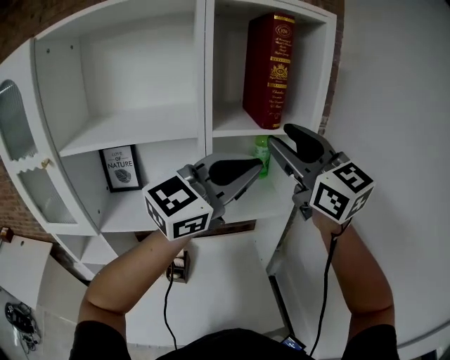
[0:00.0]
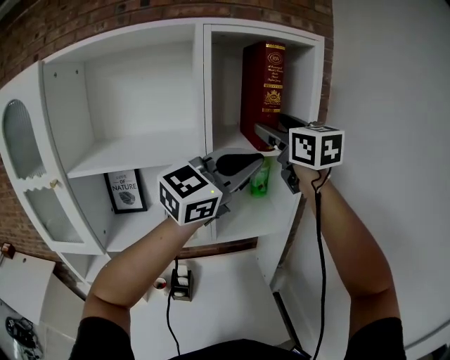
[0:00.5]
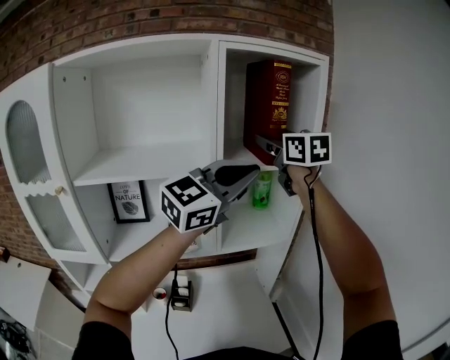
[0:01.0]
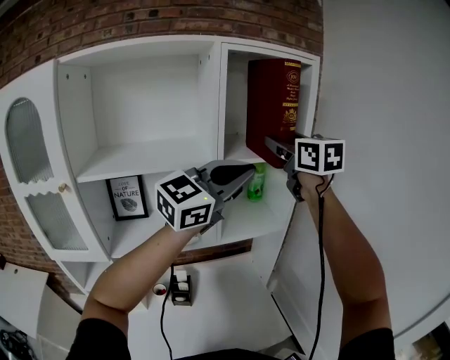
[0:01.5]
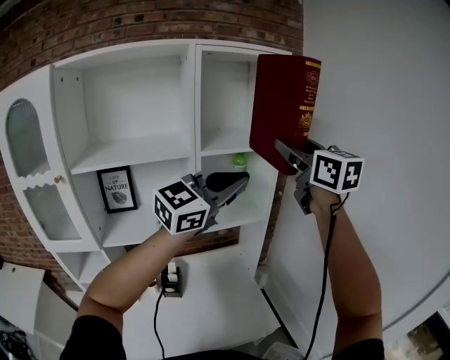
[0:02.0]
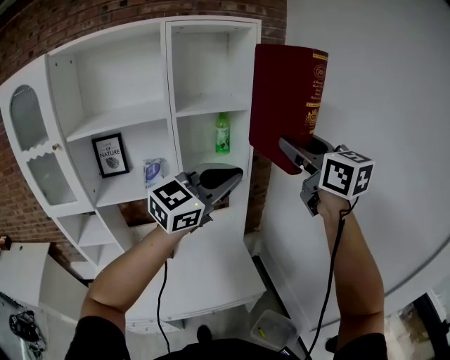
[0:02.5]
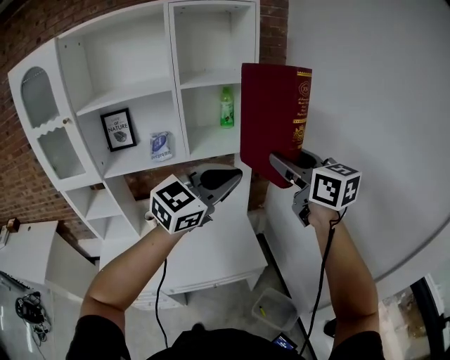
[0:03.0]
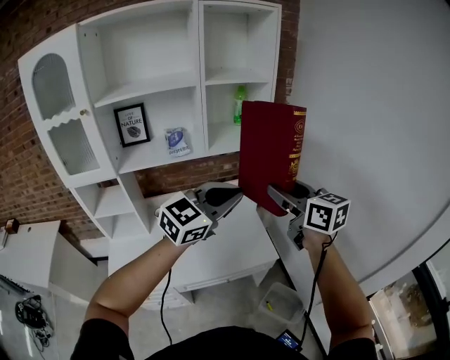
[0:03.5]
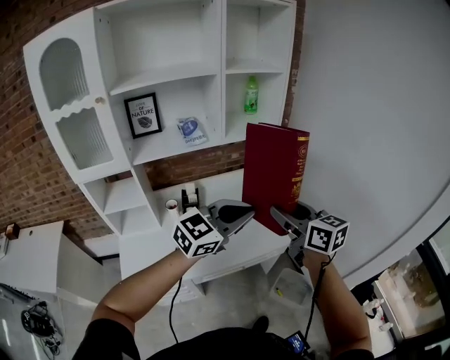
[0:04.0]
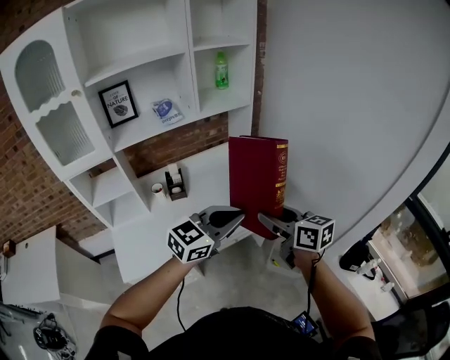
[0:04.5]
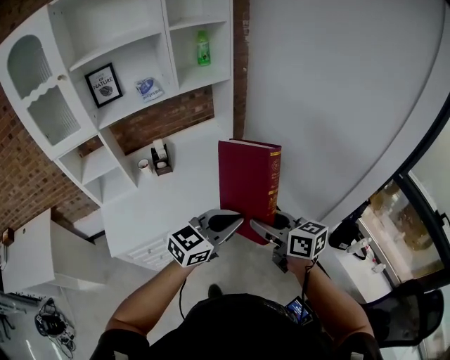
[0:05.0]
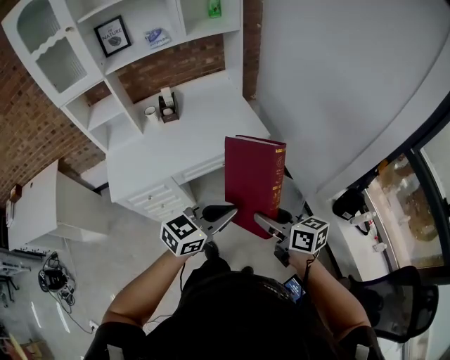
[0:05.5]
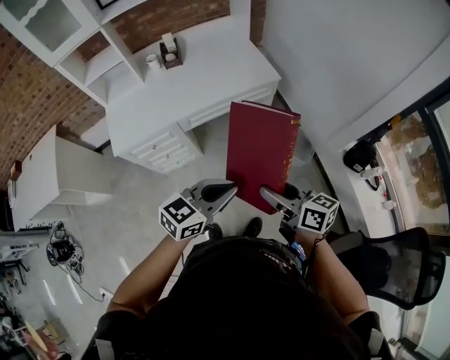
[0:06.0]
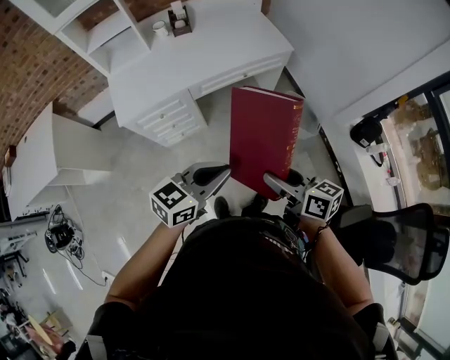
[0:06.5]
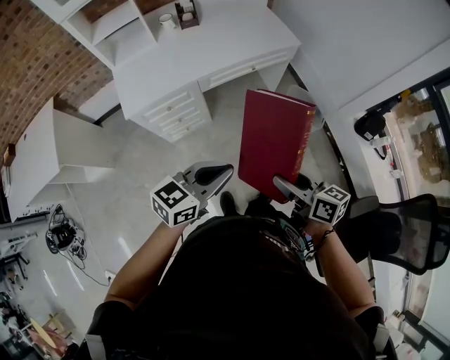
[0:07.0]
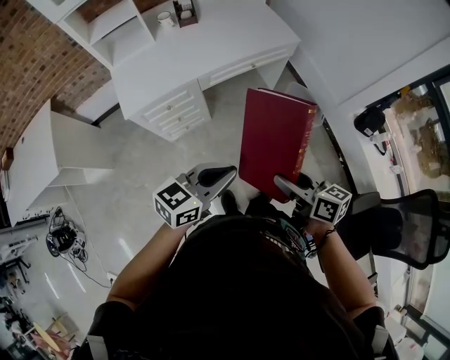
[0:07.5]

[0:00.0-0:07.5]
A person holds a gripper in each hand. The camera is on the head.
0:00.0 to 0:02.0: The right gripper moves to the right, some 10 cm, reaches roughly 15 cm forward, then returns, and rotates approximately 20 degrees; the left gripper heads backward, covering approximately 5 cm.
0:02.0 to 0:04.0: The left gripper goes roughly 35 cm backward and downward. The right gripper travels downward and backward by about 40 cm, and changes its angle by roughly 30 degrees.
0:04.0 to 0:05.5: The grippers both shift backward, downward and to the right by approximately 40 cm. The left gripper turns by roughly 20 degrees. The right gripper swivels some 20 degrees.
0:05.5 to 0:07.5: The left gripper travels to the left, backward and downward by about 30 cm. The right gripper is displaced backward, to the left and downward by about 25 cm.

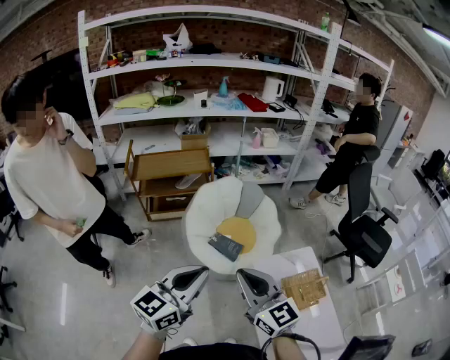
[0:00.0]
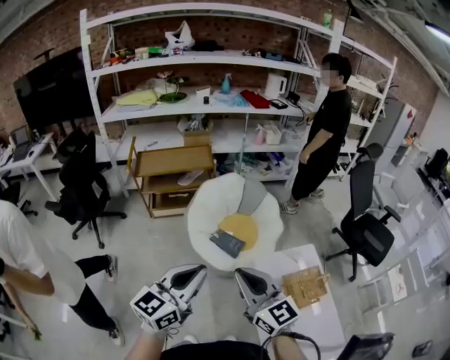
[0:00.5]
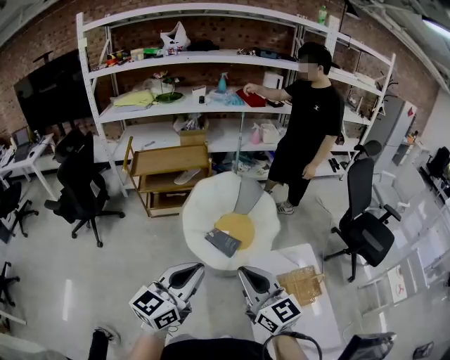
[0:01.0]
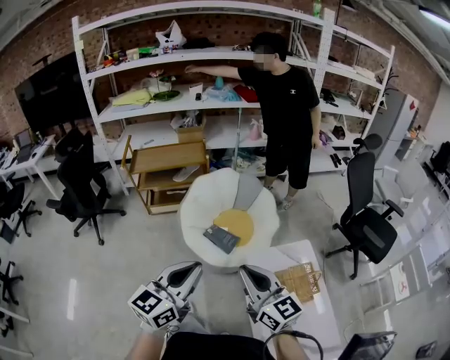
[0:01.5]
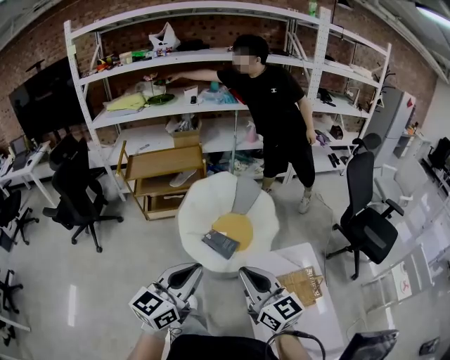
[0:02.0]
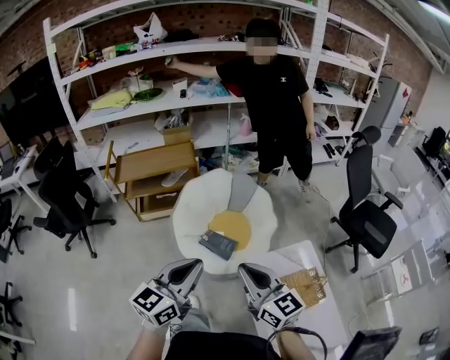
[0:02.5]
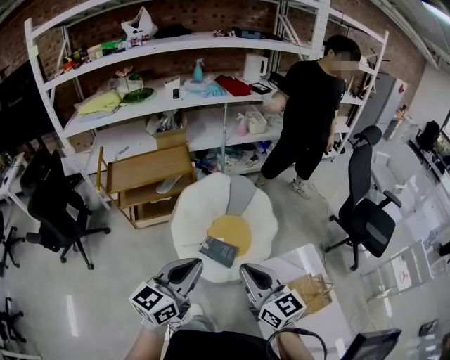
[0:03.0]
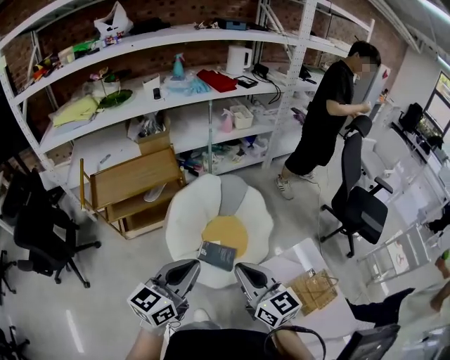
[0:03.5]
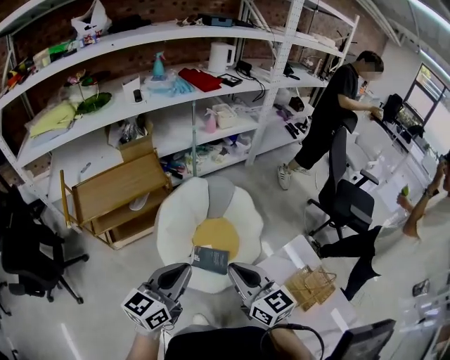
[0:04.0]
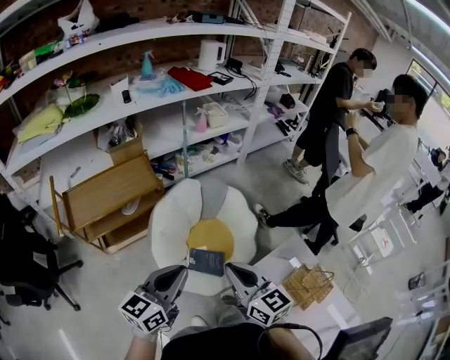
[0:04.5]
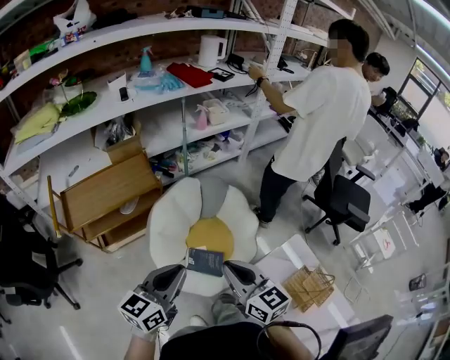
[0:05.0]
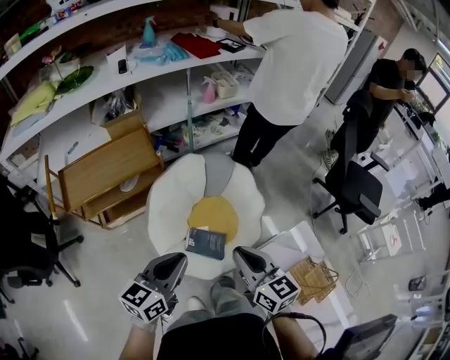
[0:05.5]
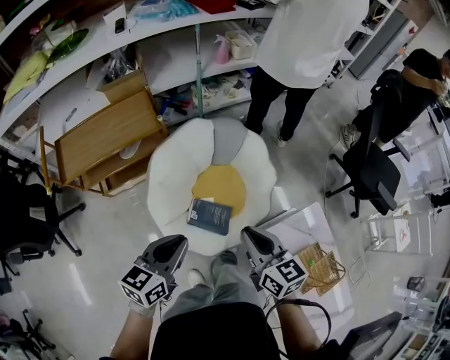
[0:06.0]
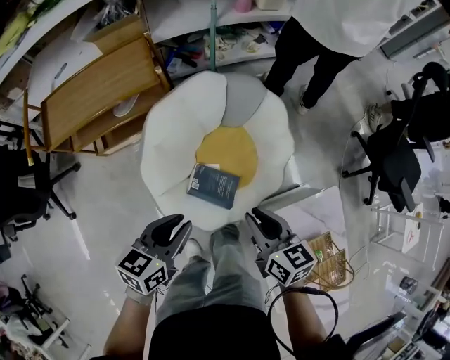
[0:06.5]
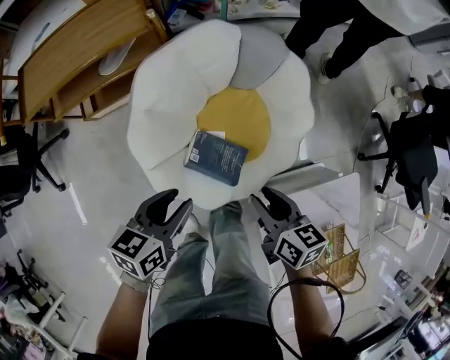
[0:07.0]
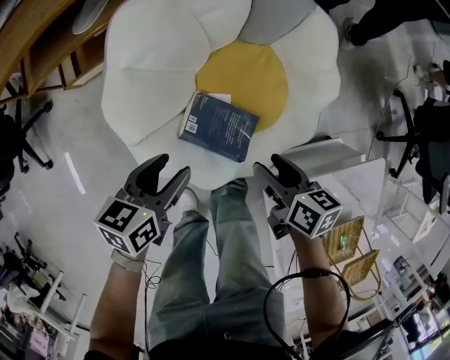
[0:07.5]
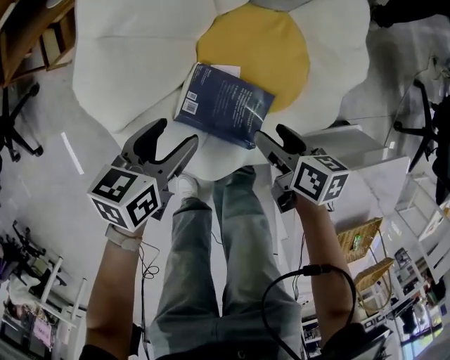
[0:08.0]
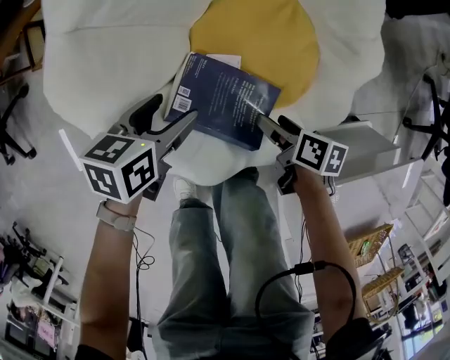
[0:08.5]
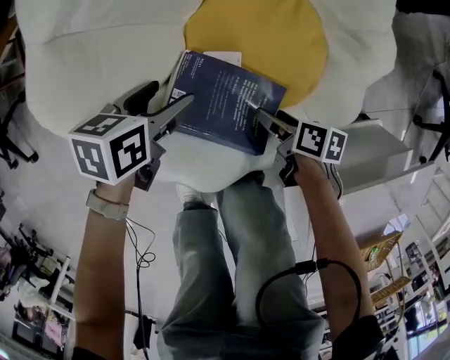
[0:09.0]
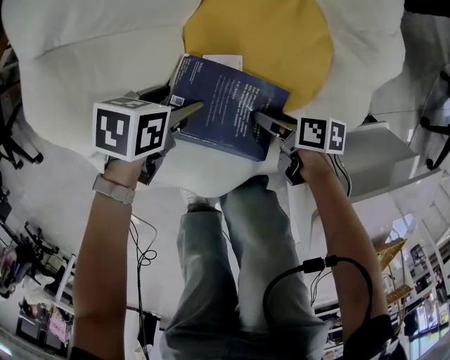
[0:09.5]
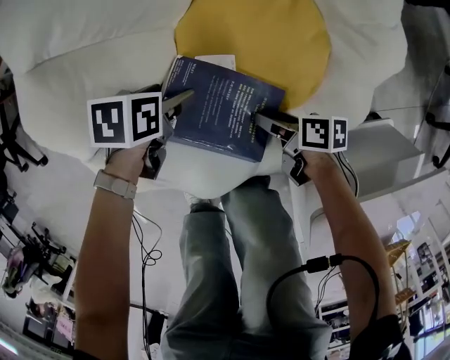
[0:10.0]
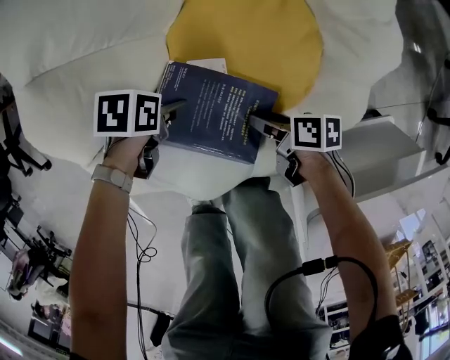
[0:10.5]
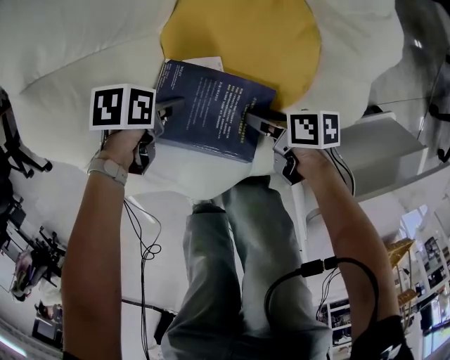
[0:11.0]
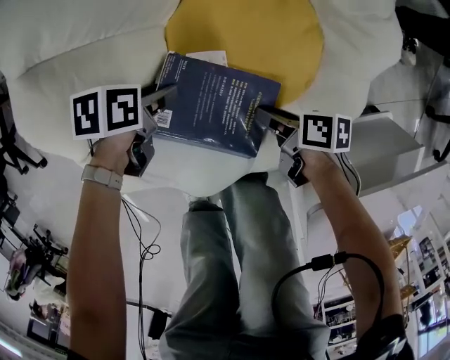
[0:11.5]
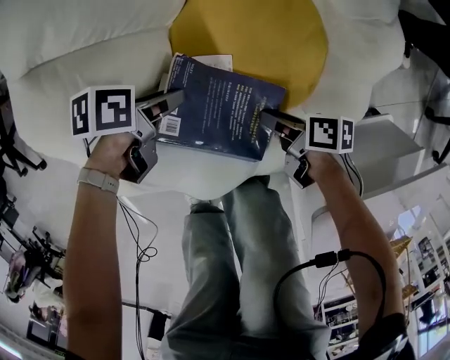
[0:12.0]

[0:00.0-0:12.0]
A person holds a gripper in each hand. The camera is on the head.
0:00.0 to 0:02.0: The grippers both shift to the right by roughly 10 cm.
0:02.0 to 0:04.0: Both grippers move forward and to the left, about 35 cm. The left gripper swivels approximately 20 degrees.
0:04.0 to 0:06.0: The right gripper travels forward, downward and to the right by about 20 cm. Meanwhile the left gripper heads downward and forward, covering about 20 cm, and changes its angle by roughly 20 degrees.
0:06.0 to 0:08.0: The grippers both shift downward by about 50 cm. The left gripper changes its angle by about 30 degrees, and opens. Meanwhile the right gripper turns by about 40 degrees, and opens its fingers.
0:08.0 to 0:10.0: Both grippers move downward, roughly 20 cm. The right gripper turns by about 20 degrees; the left gripper rotates some 30 degrees.
0:10.0 to 0:12.0: The left gripper changes its angle by about 20 degrees, and closes.

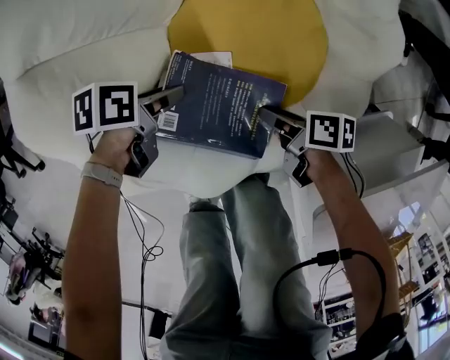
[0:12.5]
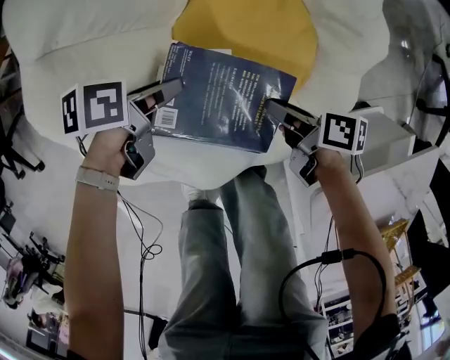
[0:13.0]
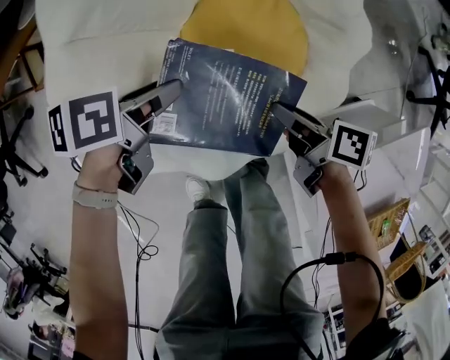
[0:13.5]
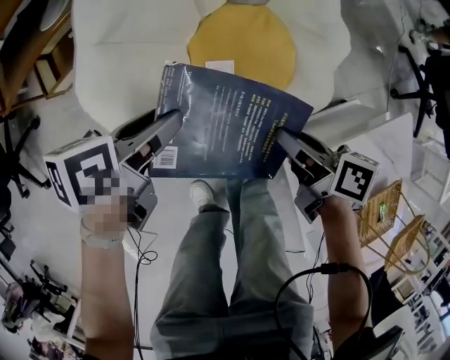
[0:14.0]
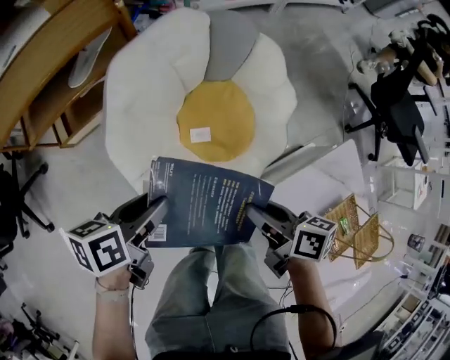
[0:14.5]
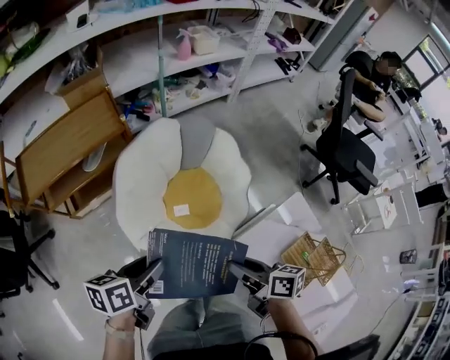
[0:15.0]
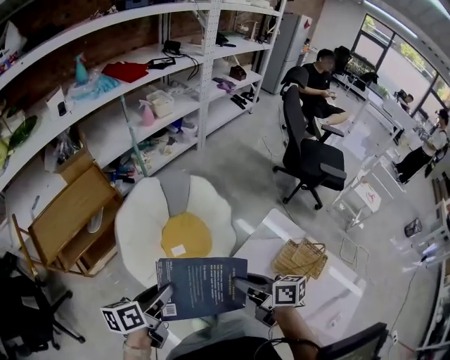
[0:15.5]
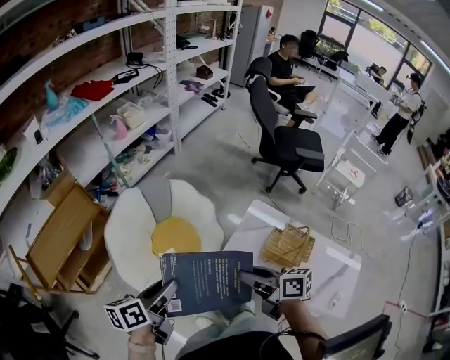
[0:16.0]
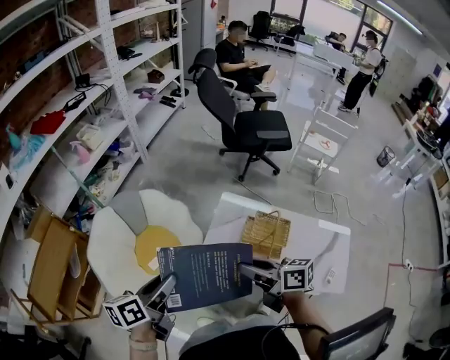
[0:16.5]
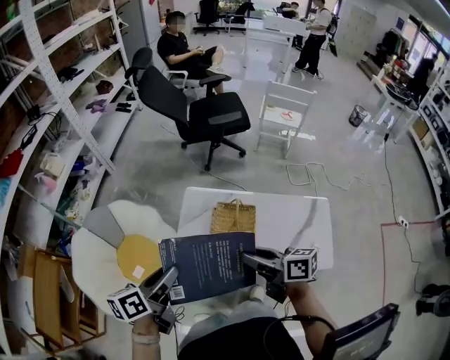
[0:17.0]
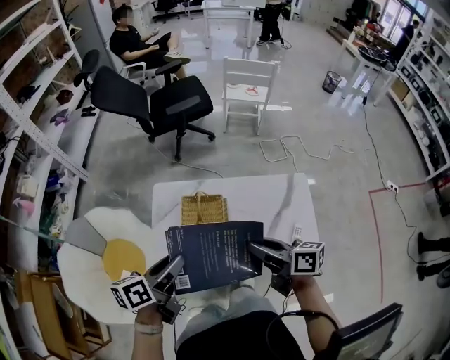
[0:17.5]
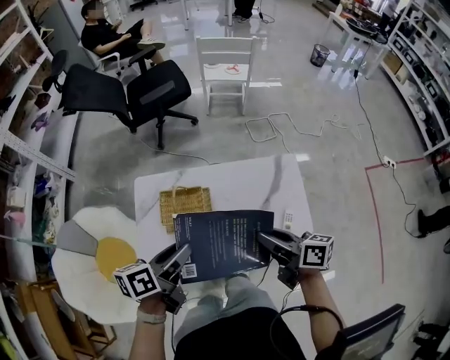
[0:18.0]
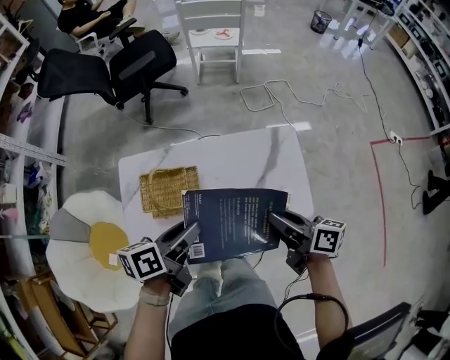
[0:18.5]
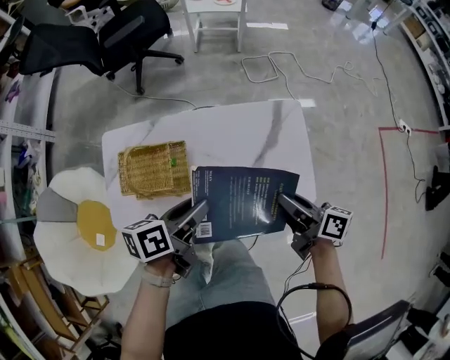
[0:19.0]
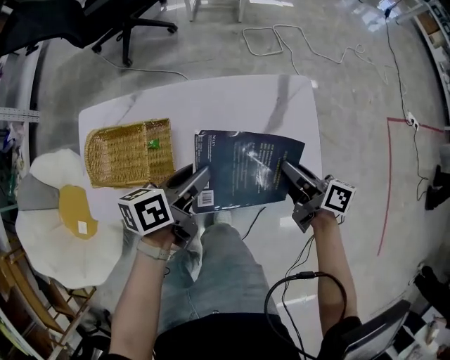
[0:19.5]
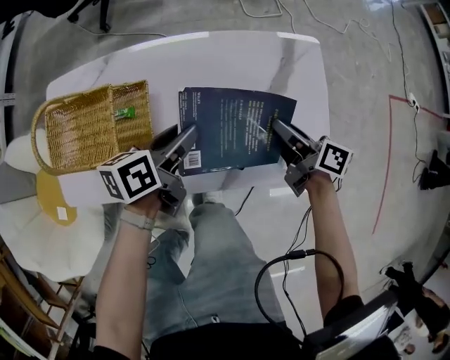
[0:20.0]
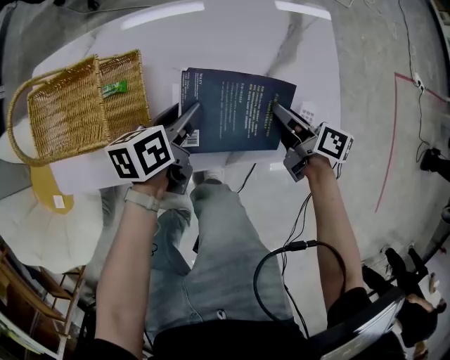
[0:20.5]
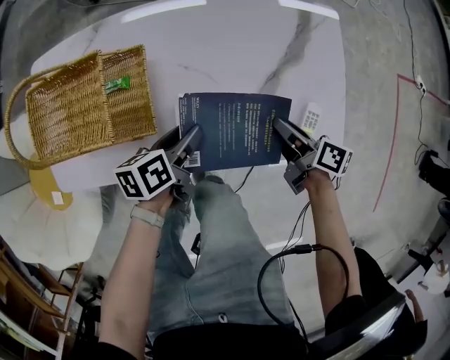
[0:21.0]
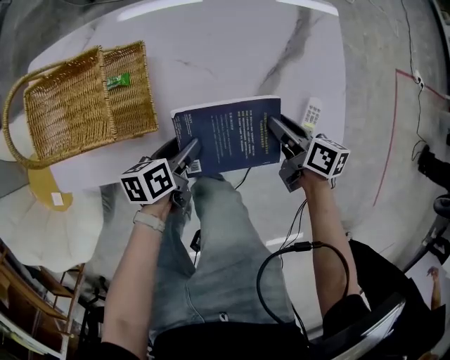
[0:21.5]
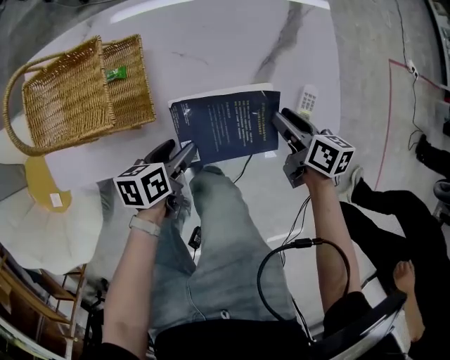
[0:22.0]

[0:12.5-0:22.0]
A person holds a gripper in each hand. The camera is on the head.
0:12.5 to 0:14.5: The right gripper turns by some 20 degrees.
0:14.5 to 0:16.5: Both grippers travel together upward, approximately 40 cm. The right gripper turns by about 40 degrees; the left gripper changes its angle by about 30 degrees.
0:16.5 to 0:18.0: The two grippers travel together, roughly 50 cm. The left gripper swivels roughly 30 degrees; the right gripper rotates about 40 degrees.
0:18.0 to 0:20.0: The left gripper travels downward, to the right and forward by some 35 cm. The right gripper travels downward and to the right by about 35 cm.
0:20.0 to 0:22.0: The right gripper changes place by about 5 cm, and changes its angle by roughly 20 degrees. Meanwhile the left gripper travels downward and backward by approximately 10 cm.
